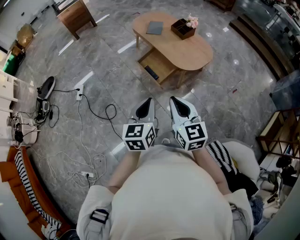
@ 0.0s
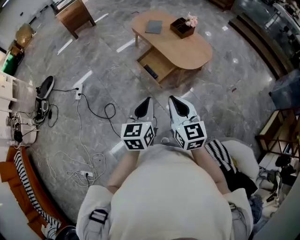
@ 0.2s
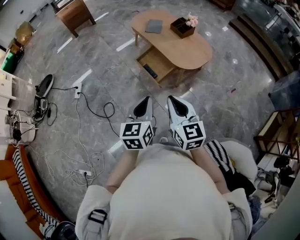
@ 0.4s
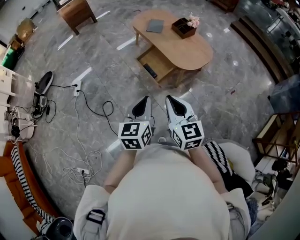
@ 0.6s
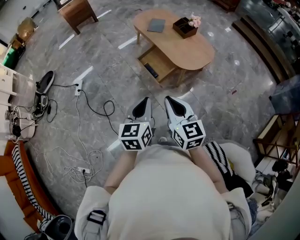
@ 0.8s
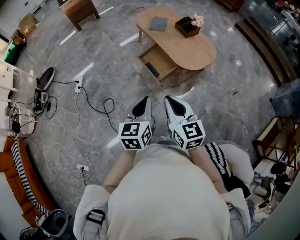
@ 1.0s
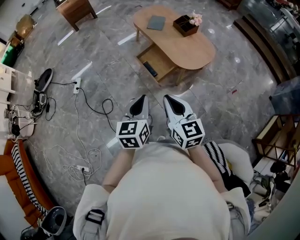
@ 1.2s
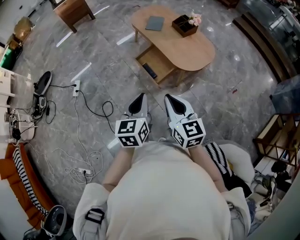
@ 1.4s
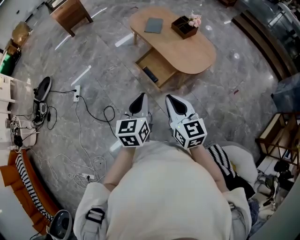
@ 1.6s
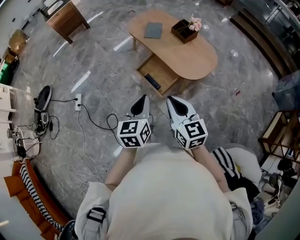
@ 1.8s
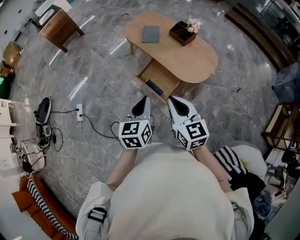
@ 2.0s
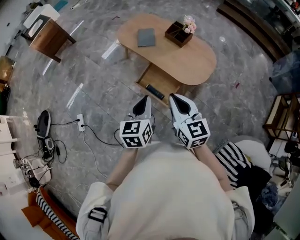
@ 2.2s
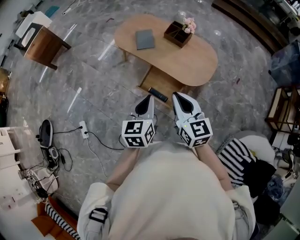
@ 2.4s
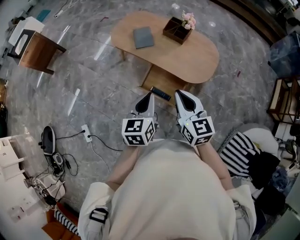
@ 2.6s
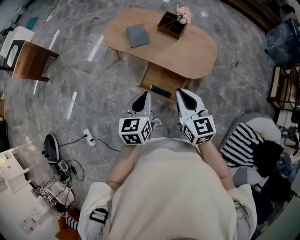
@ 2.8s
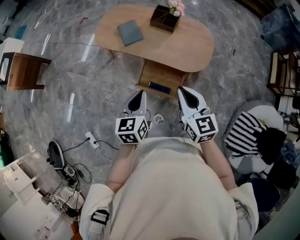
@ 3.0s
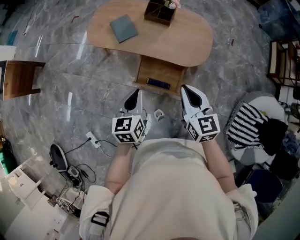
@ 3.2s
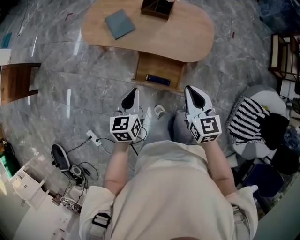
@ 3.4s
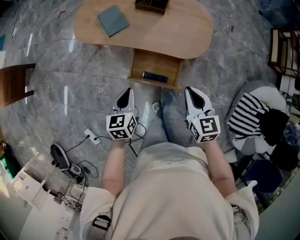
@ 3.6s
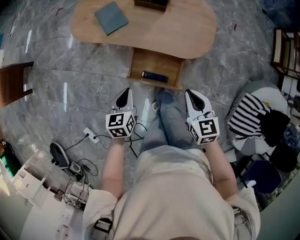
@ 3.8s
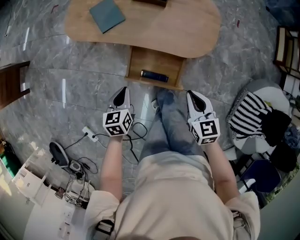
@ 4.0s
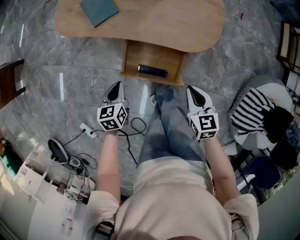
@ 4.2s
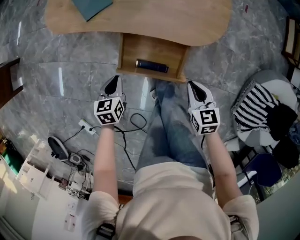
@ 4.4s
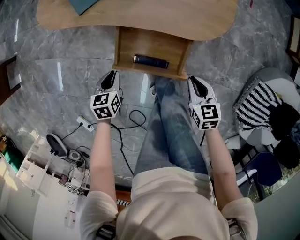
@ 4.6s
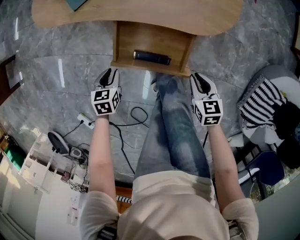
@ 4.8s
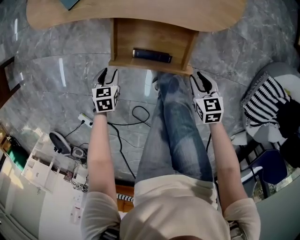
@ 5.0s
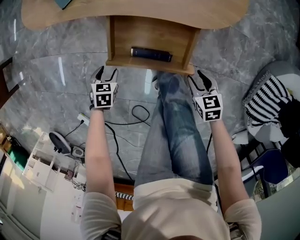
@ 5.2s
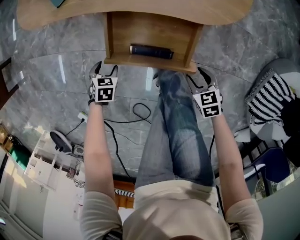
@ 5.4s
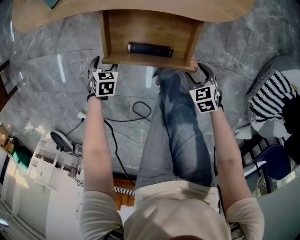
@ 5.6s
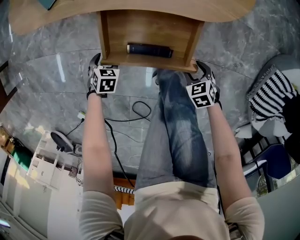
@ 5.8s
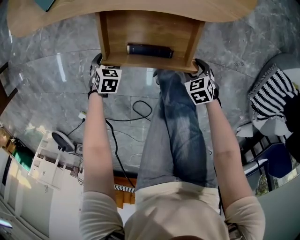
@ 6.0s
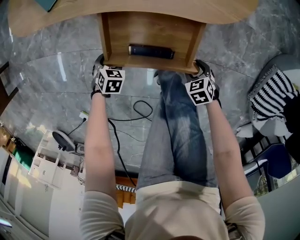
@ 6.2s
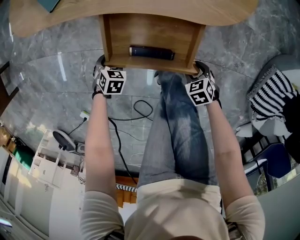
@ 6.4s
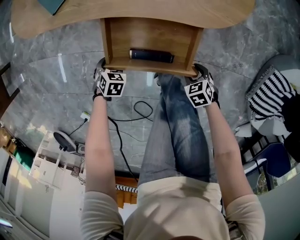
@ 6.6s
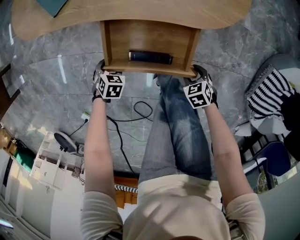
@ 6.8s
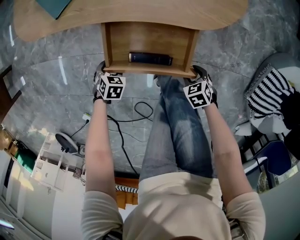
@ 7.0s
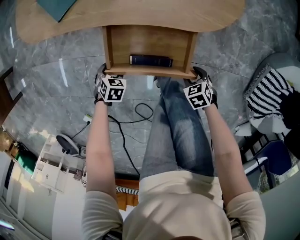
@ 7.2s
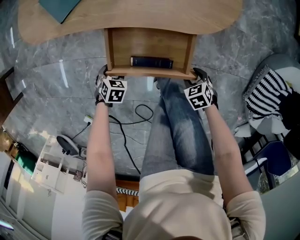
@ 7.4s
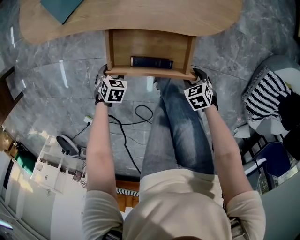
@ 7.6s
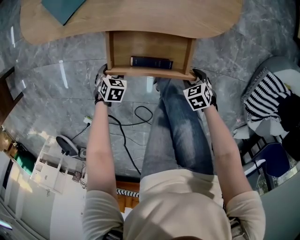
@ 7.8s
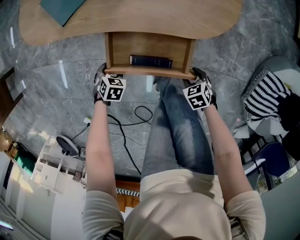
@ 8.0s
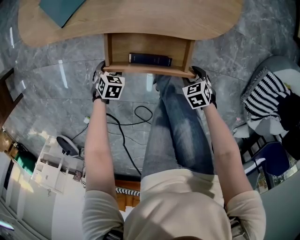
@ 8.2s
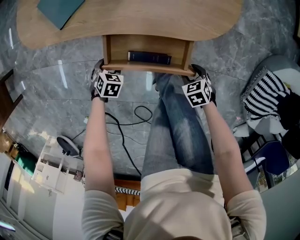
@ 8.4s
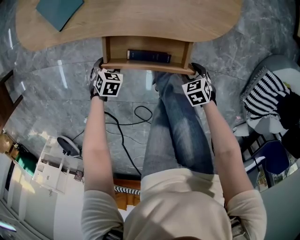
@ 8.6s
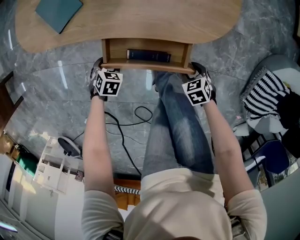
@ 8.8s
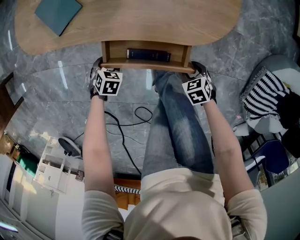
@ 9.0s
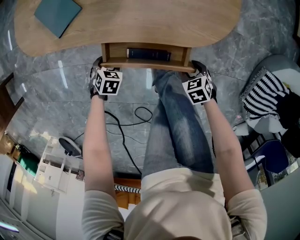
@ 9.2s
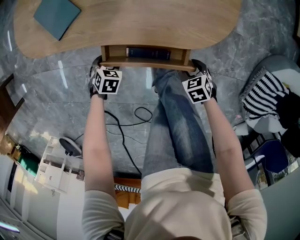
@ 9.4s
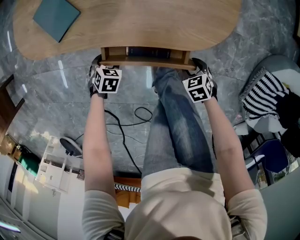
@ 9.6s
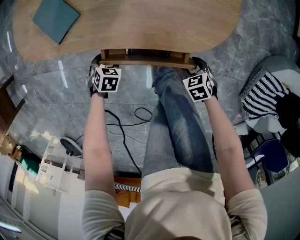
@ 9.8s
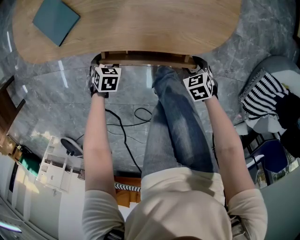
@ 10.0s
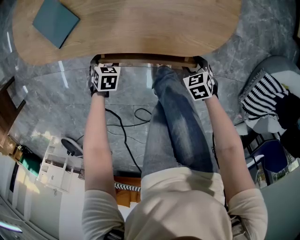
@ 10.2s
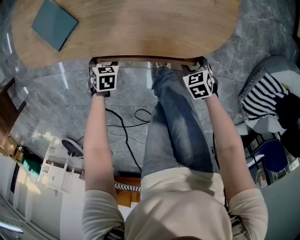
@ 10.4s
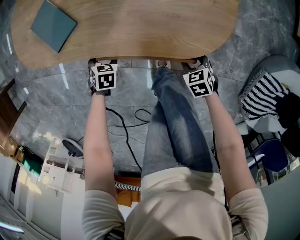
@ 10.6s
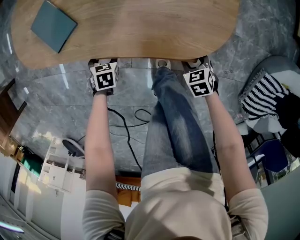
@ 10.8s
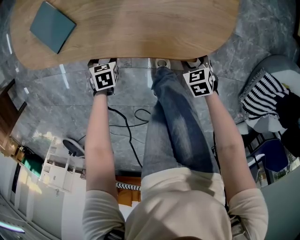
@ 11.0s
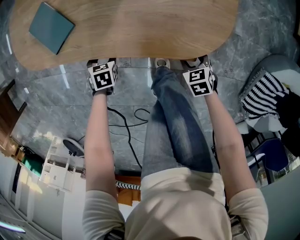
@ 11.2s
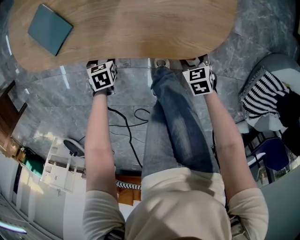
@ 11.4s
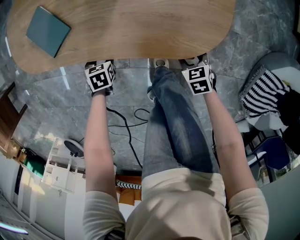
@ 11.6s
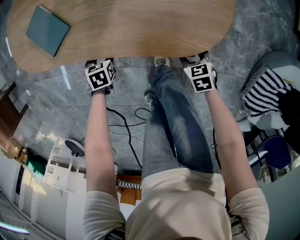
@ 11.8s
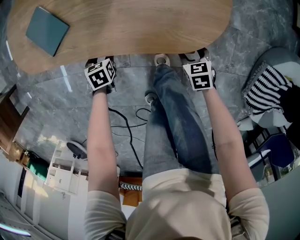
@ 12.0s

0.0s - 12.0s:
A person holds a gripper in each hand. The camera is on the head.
0.0s - 1.6s: The two grippers go some 10 cm forward.
1.6s - 3.0s: The right gripper moves approximately 30 cm, and turns by roughly 30 degrees; the left gripper ends up some 35 cm from where it was, and turns by some 30 degrees.
3.0s - 4.4s: Both grippers travel together downward, approximately 35 cm. The right gripper changes its angle by approximately 30 degrees. Meanwhile the left gripper rotates some 20 degrees.
4.4s - 6.0s: The grippers both shift downward by some 25 cm. The left gripper changes its angle by some 40 degrees, and opens its fingers, while the right gripper rotates roughly 30 degrees, and opens up.
6.0s - 7.6s: The grippers both shift upward by about 5 cm.
7.6s - 9.0s: The left gripper moves roughly 10 cm. Meanwhile the right gripper changes place by roughly 5 cm.
9.0s - 10.4s: The left gripper ends up approximately 10 cm from where it was. Meanwhile the right gripper ends up about 10 cm from where it was.
10.4s - 12.0s: The left gripper swivels some 20 degrees.

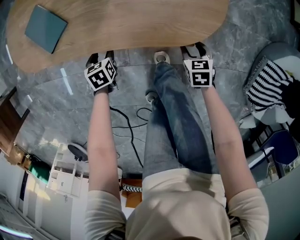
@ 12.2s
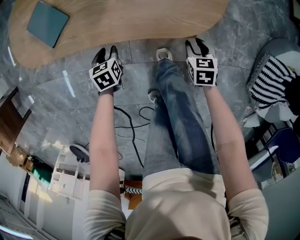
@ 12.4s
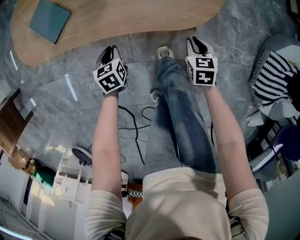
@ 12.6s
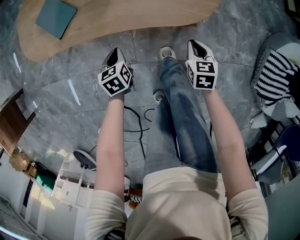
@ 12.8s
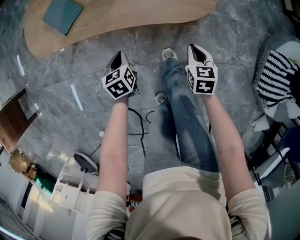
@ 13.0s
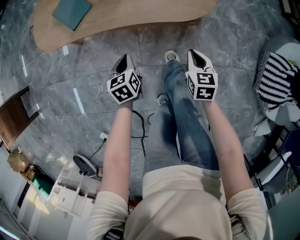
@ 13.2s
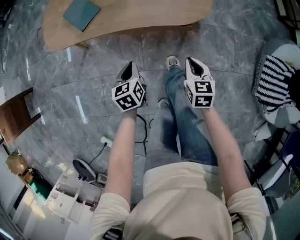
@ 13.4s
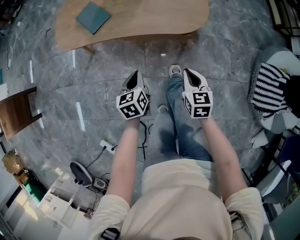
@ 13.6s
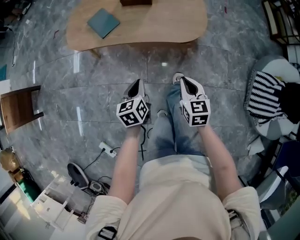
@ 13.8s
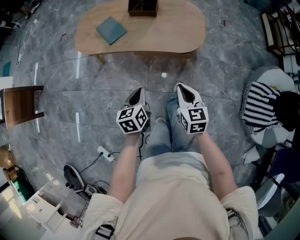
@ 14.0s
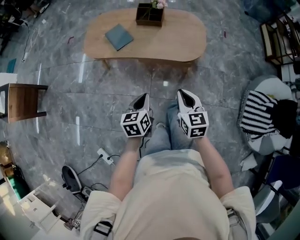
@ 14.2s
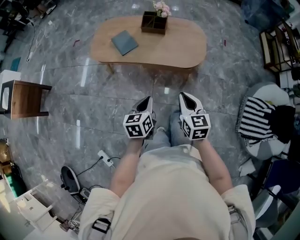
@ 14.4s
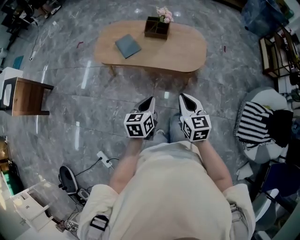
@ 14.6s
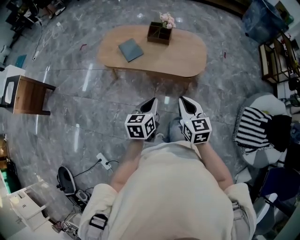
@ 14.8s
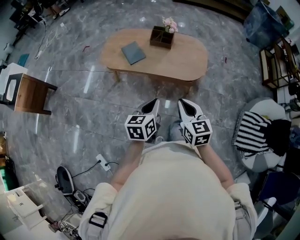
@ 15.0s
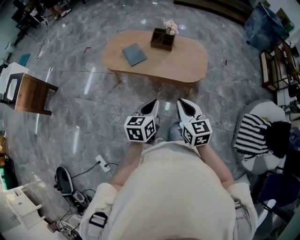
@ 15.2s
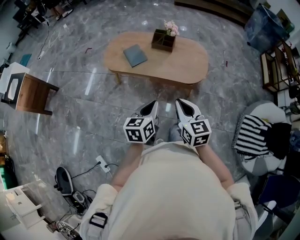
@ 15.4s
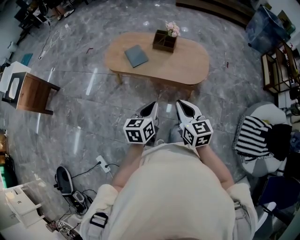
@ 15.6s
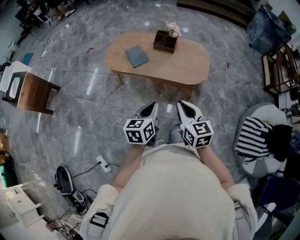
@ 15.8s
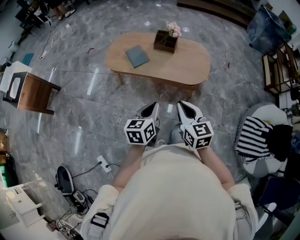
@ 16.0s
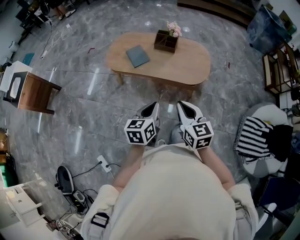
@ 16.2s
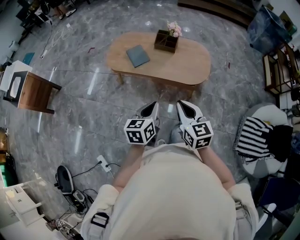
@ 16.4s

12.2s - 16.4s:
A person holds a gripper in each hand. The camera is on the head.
12.2s - 13.6s: The right gripper goes some 30 cm upward, backward and to the left, swivels approximately 30 degrees, and closes. Meanwhile the left gripper goes about 30 cm upward and backward, swivels roughly 30 degrees, and closes its fingers.
13.6s - 15.0s: Both grippers travel together upward, approximately 30 cm. The right gripper swivels some 20 degrees.
15.0s - 16.4s: There are only small adjustments of the grippers.

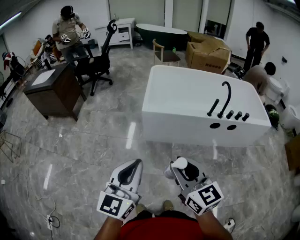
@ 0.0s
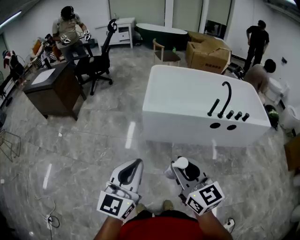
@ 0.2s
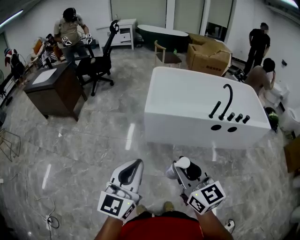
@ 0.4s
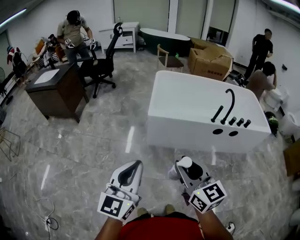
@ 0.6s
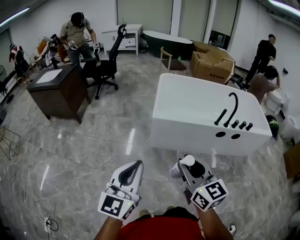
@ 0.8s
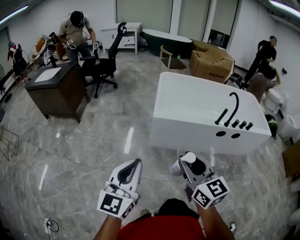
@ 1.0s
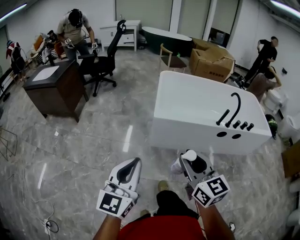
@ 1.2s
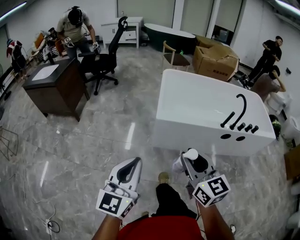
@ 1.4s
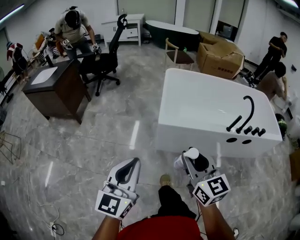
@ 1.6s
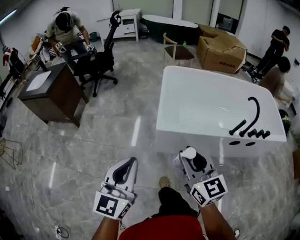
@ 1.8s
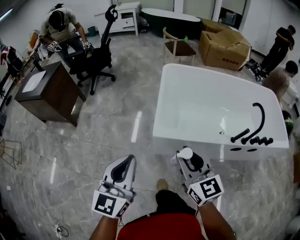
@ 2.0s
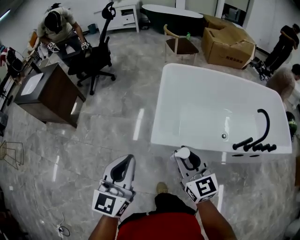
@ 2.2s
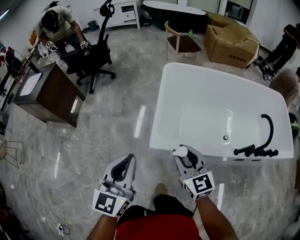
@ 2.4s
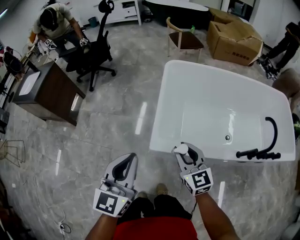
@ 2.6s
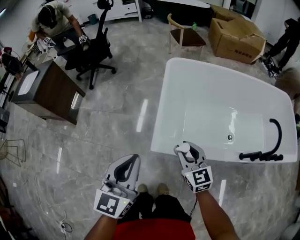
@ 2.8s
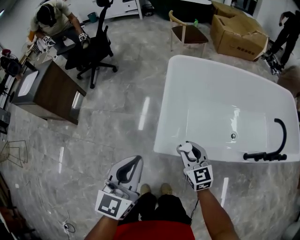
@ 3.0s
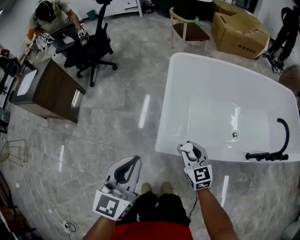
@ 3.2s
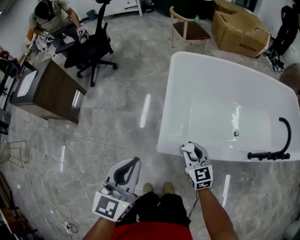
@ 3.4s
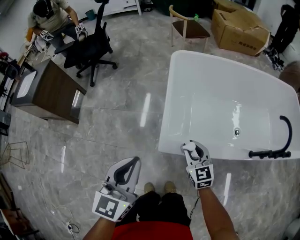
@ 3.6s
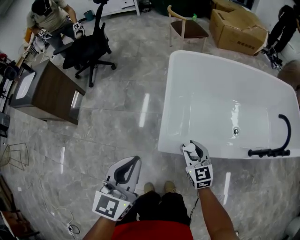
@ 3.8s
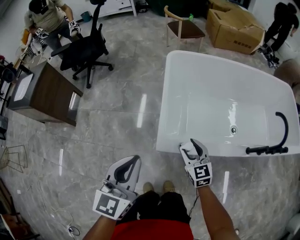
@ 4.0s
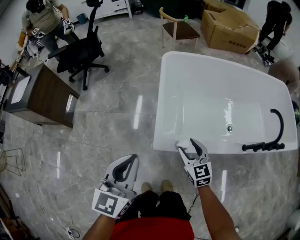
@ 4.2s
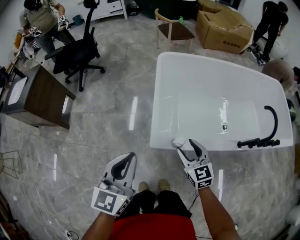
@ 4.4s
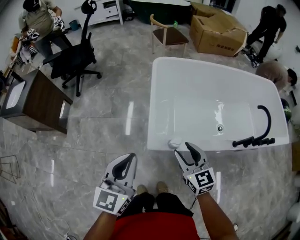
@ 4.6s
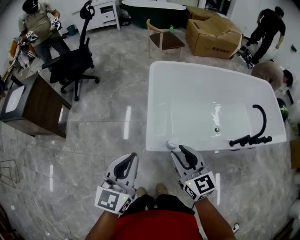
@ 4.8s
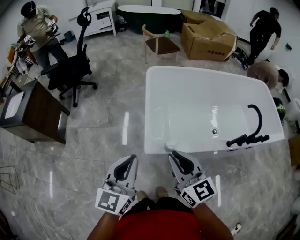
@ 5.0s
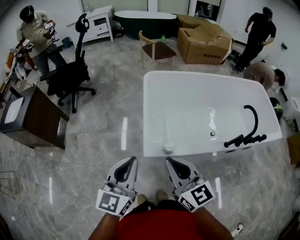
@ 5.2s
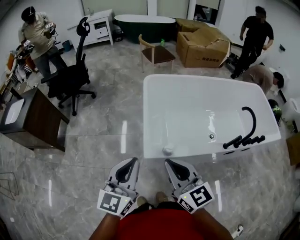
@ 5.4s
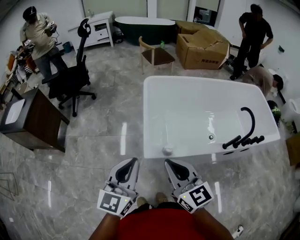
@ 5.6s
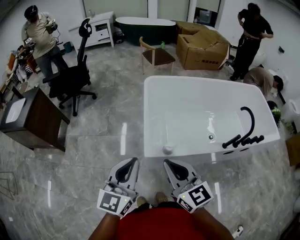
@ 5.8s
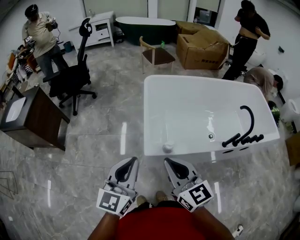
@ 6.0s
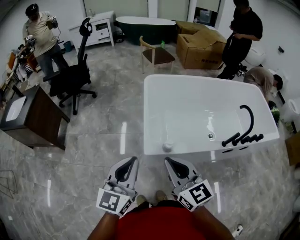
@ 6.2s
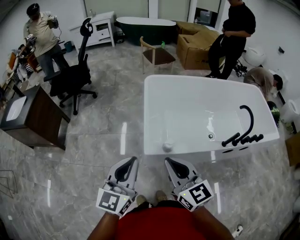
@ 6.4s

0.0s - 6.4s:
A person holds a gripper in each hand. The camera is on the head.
0.0s - 1.6s: The left gripper moves forward and to the left, some 20 cm; the right gripper is displaced forward by roughly 20 cm.
1.6s - 3.2s: The right gripper moves forward and downward, approximately 50 cm, while the left gripper is displaced forward by roughly 35 cm.
3.2s - 4.8s: The right gripper goes approximately 15 cm upward and backward, and opens and closes again.
4.8s - 6.4s: The right gripper moves backward and upward, roughly 10 cm, and closes its fingers. Meanwhile the left gripper heads backward, covering some 5 cm.

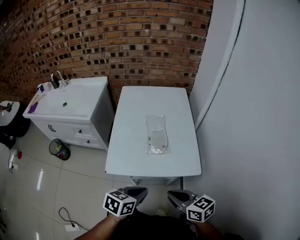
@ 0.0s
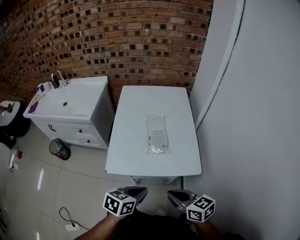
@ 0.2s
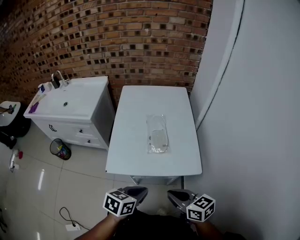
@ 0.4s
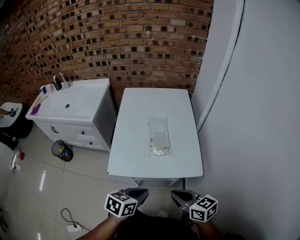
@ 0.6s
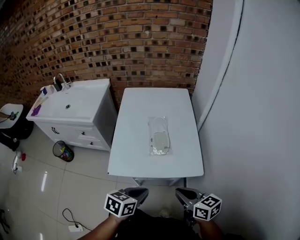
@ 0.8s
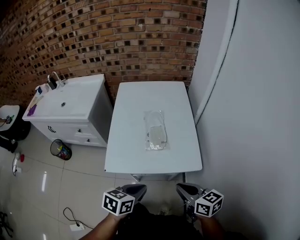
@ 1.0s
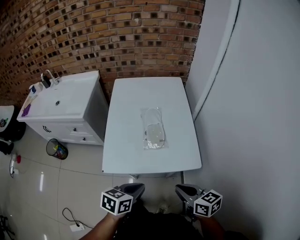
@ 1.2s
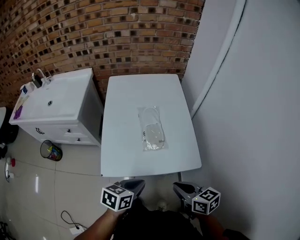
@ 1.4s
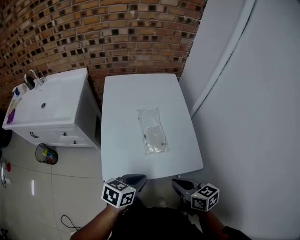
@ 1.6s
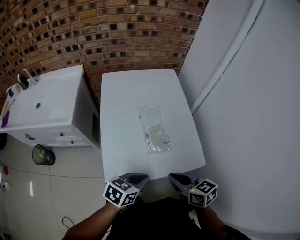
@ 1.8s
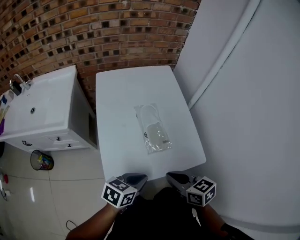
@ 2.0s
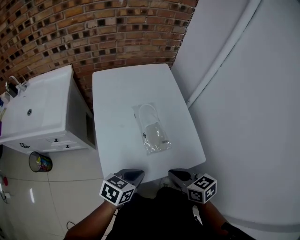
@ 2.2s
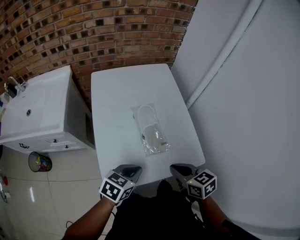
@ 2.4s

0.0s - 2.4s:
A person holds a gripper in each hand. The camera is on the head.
0.0s - 1.2s: There are only small adjustments of the grippers.
1.2s - 2.4s: Both grippers move forward and to the left, roughly 15 cm. The left gripper turns by some 20 degrees.
